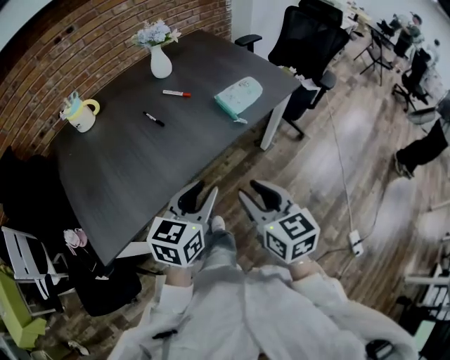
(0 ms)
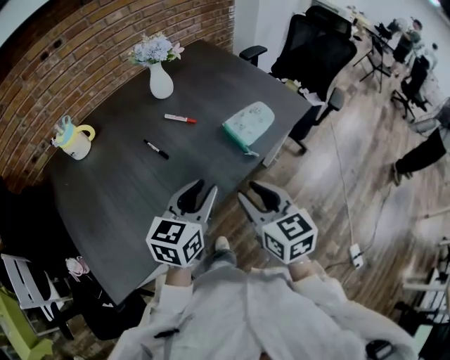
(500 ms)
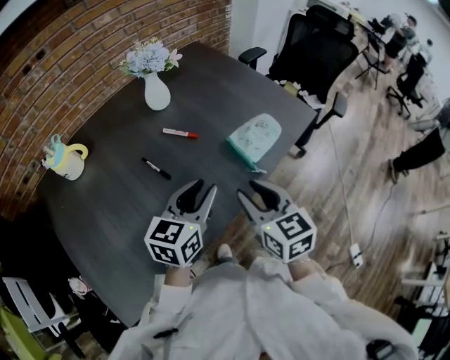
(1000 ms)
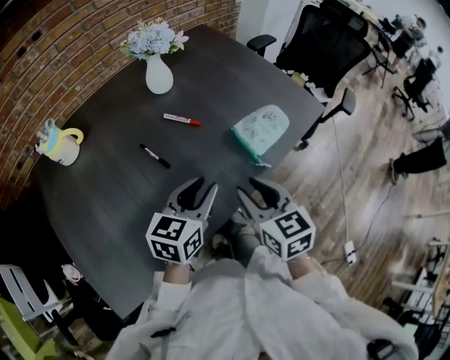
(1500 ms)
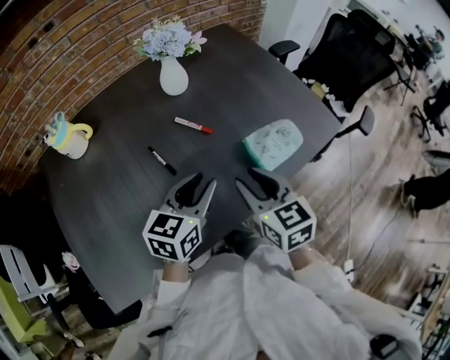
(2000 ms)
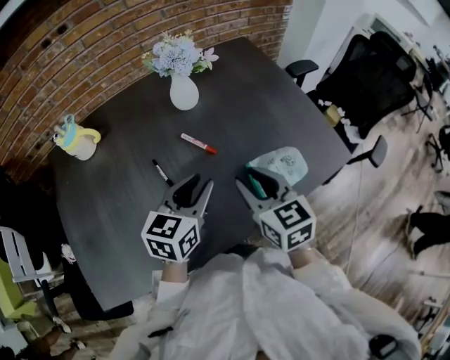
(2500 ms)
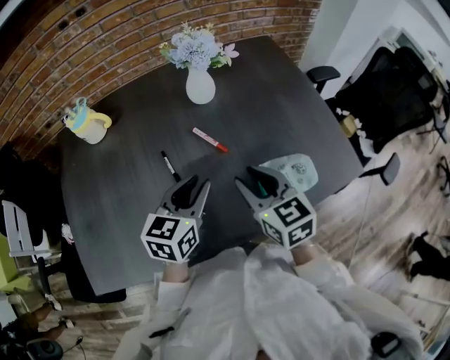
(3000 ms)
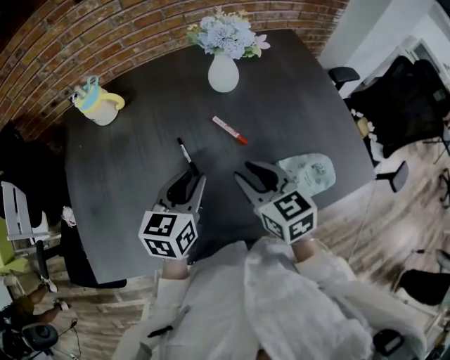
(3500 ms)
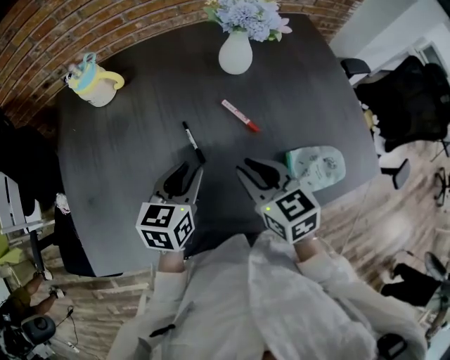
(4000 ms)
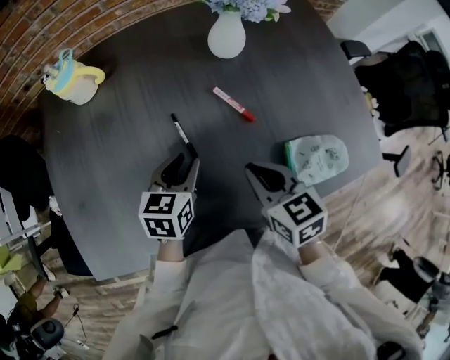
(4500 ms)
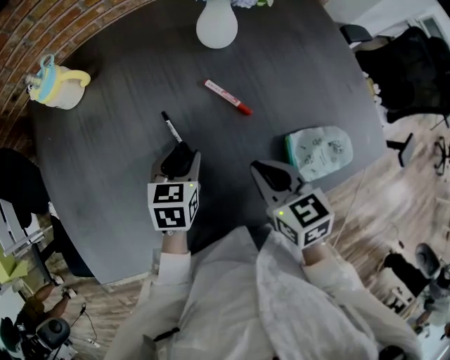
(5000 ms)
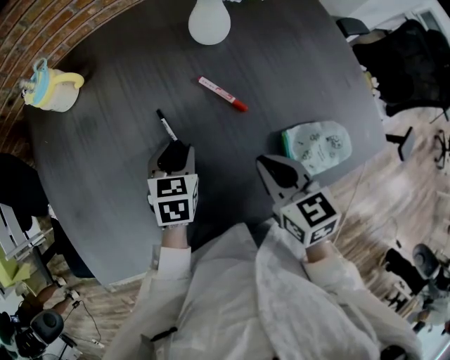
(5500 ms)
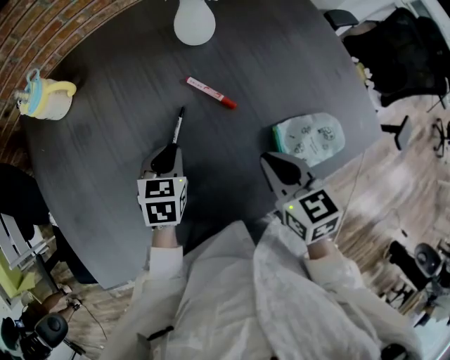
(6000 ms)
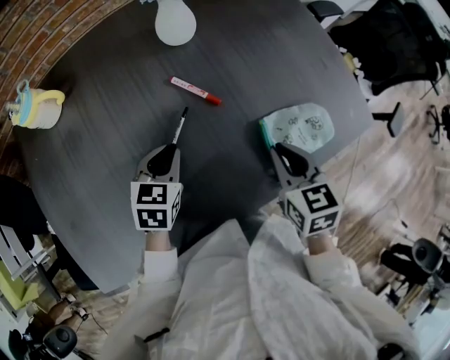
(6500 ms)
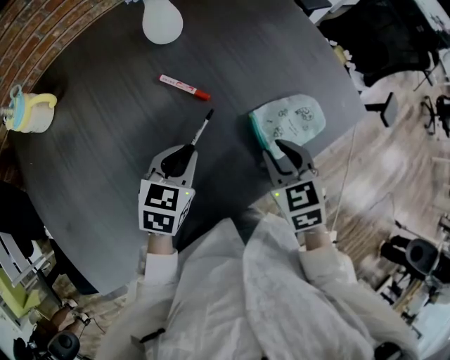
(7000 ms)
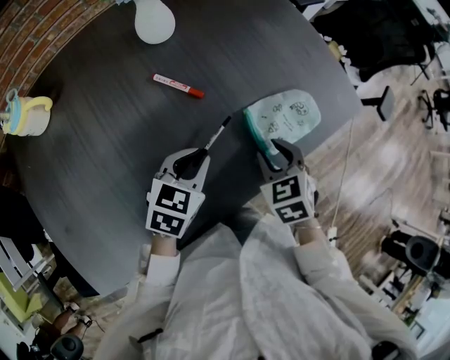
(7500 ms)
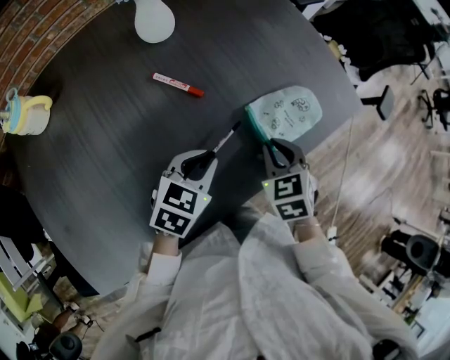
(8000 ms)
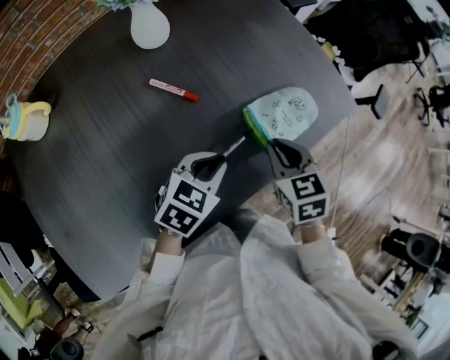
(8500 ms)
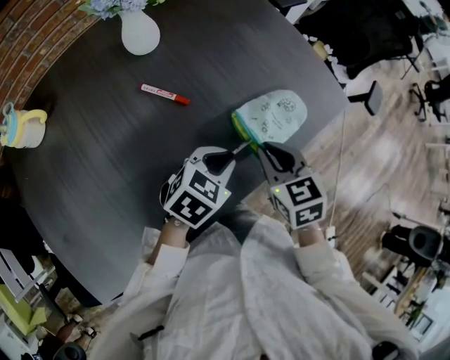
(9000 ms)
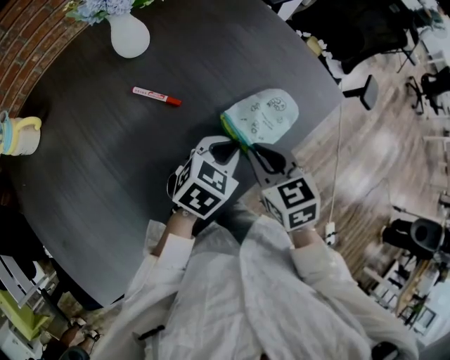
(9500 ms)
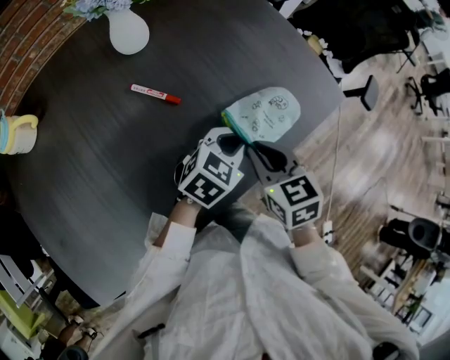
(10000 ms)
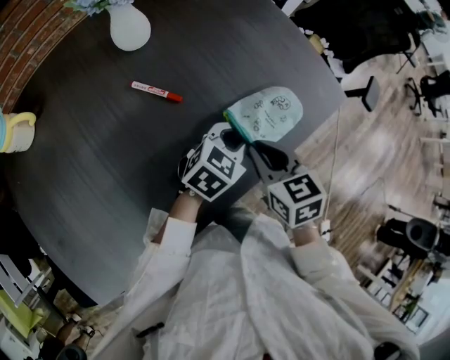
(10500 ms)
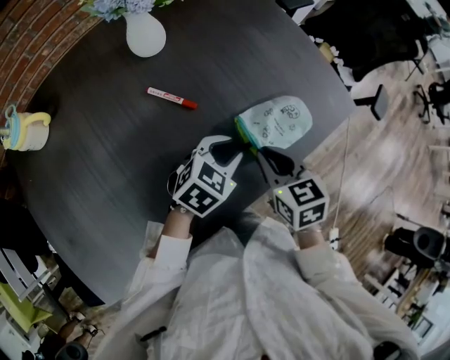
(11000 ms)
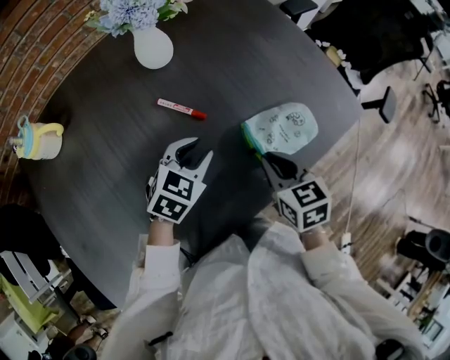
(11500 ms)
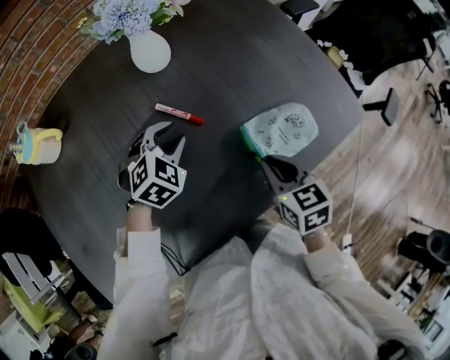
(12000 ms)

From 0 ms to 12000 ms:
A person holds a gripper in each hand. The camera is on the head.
From 0 ms to 2000 ms: Both grippers travel together forward, some 30 cm.
From 2000 ms to 4000 ms: The left gripper ends up approximately 15 cm from where it was, and swivels approximately 30 degrees. The right gripper ends up roughly 15 cm from where it was, and turns by approximately 30 degrees.
From 4000 ms to 6000 ms: The left gripper shifts some 10 cm downward, and turns by about 20 degrees. The right gripper travels to the right by about 10 cm.
From 6000 ms to 8000 ms: The right gripper ends up approximately 10 cm from where it was, and changes its angle by about 30 degrees; the left gripper moves about 15 cm, and changes its angle by roughly 40 degrees.
From 8000 ms to 10000 ms: The left gripper heads to the right and forward, covering some 15 cm.
From 10000 ms to 12000 ms: The left gripper goes some 20 cm to the left, and changes its angle by roughly 40 degrees.

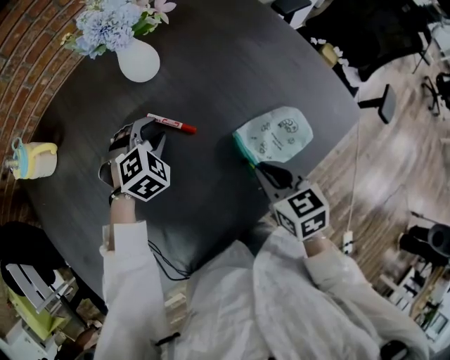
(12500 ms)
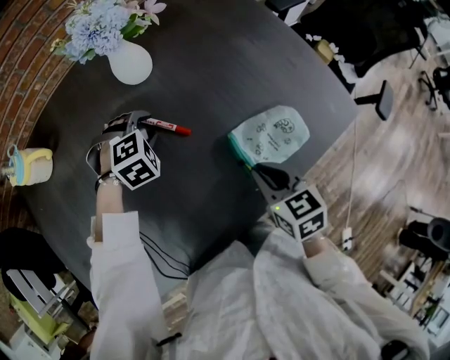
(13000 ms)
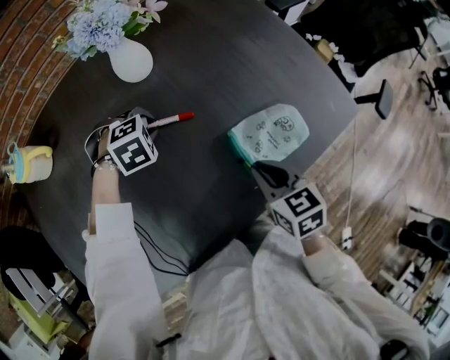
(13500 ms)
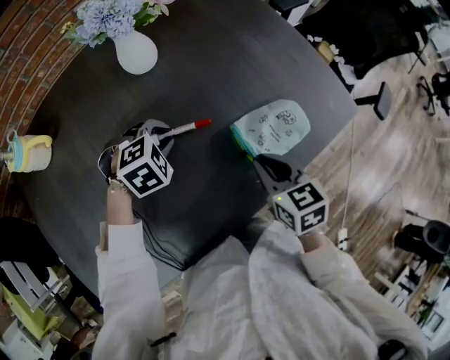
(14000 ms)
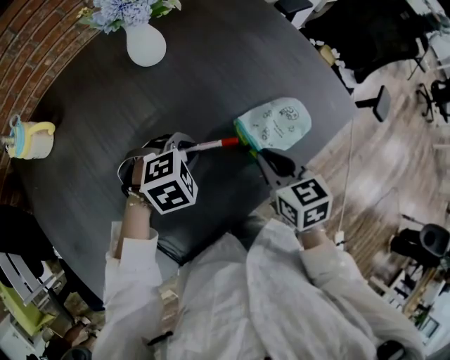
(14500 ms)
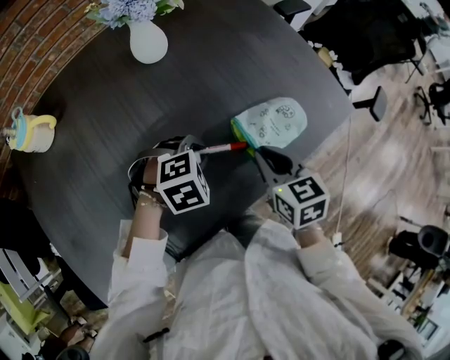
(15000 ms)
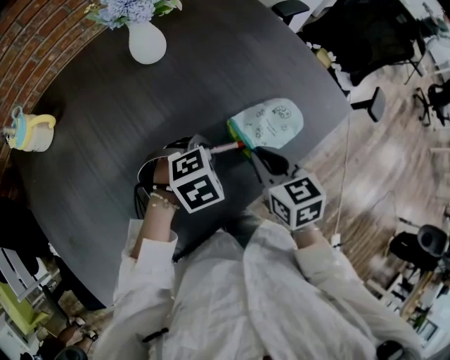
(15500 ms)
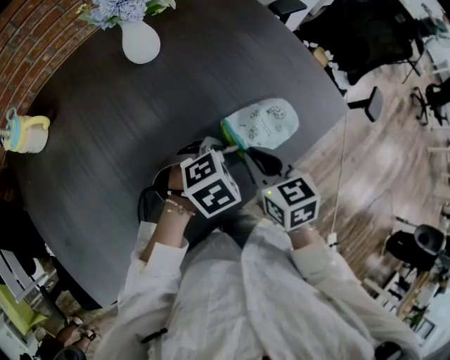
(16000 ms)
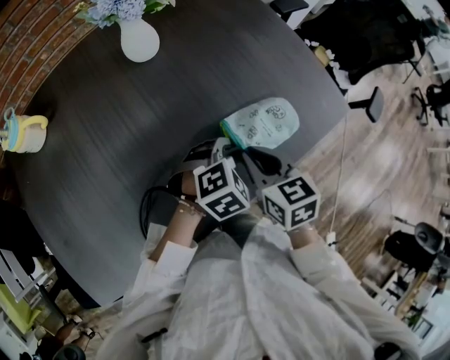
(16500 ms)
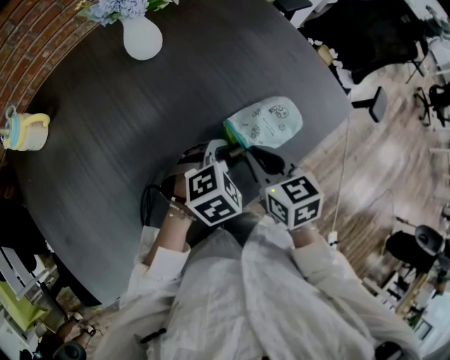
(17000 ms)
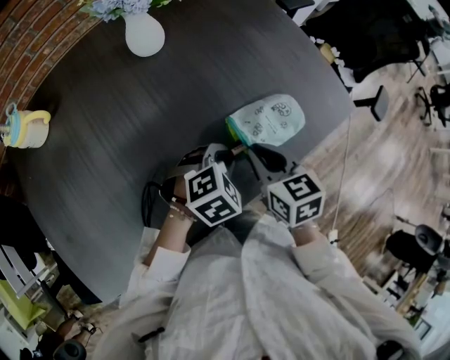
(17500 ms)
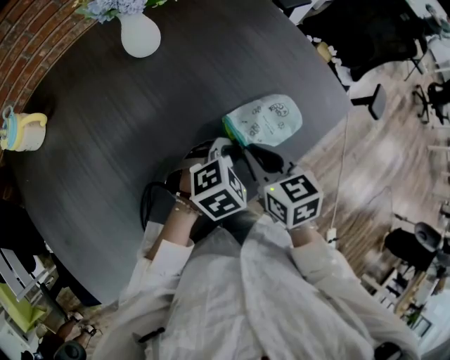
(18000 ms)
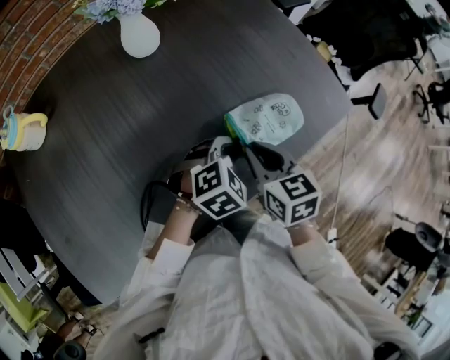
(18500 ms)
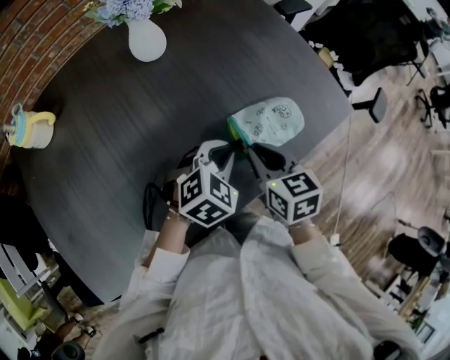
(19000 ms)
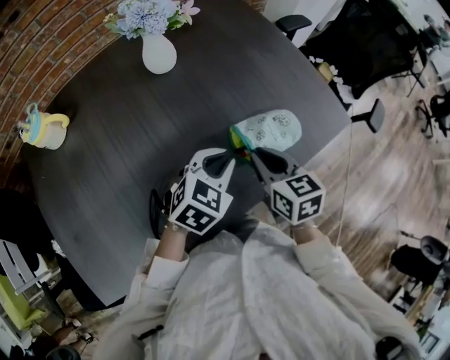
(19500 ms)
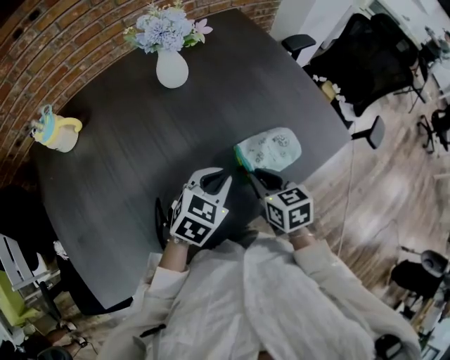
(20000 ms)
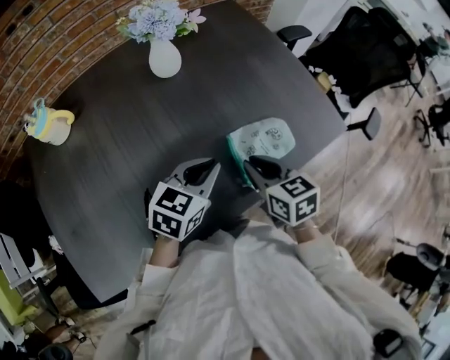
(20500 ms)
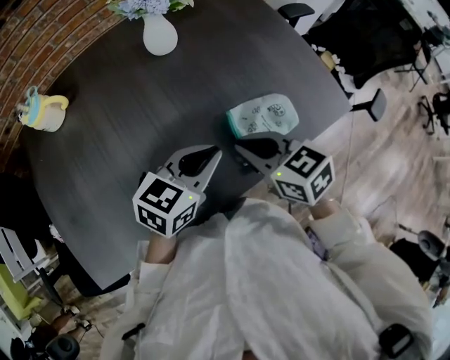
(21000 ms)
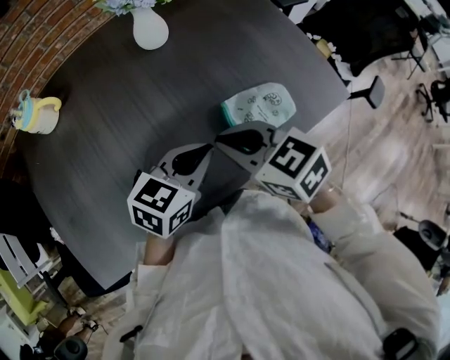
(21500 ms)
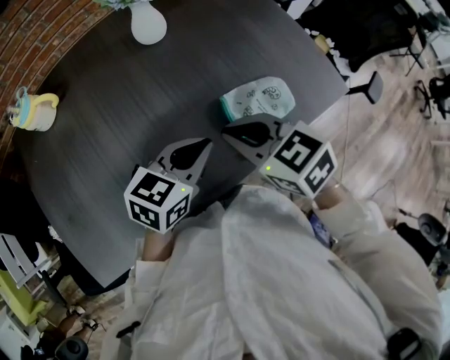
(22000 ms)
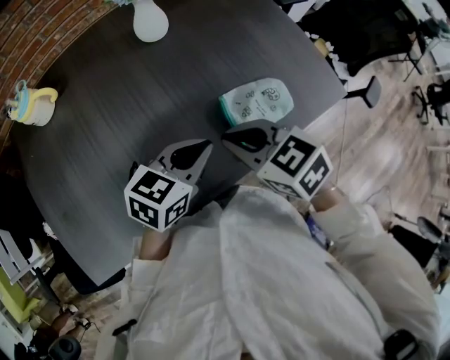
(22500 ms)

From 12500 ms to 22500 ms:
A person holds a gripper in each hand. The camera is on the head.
From 12500 ms to 14500 ms: The left gripper shifts by roughly 15 cm, and swivels about 20 degrees.
From 14500 ms to 16500 ms: The left gripper heads to the right, covering approximately 15 cm.
From 16500 ms to 18500 ms: The grippers stay close to where they were, moving slightly.
From 18500 ms to 20500 ms: The left gripper travels upward and to the left by roughly 15 cm, and turns by roughly 40 degrees.
From 20500 ms to 22500 ms: The right gripper goes some 5 cm to the left, and rotates about 30 degrees.

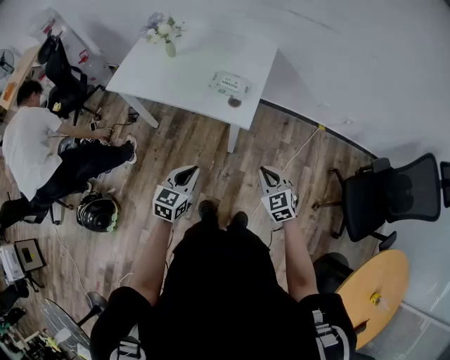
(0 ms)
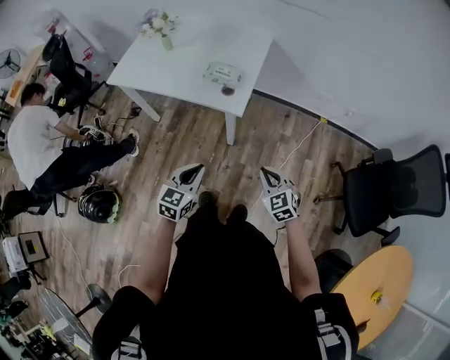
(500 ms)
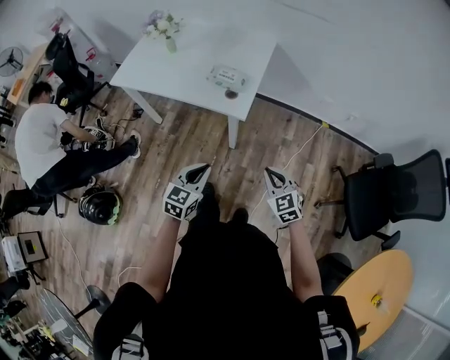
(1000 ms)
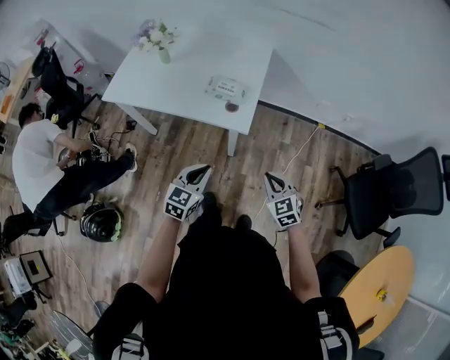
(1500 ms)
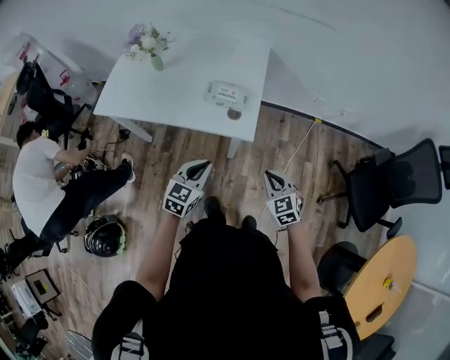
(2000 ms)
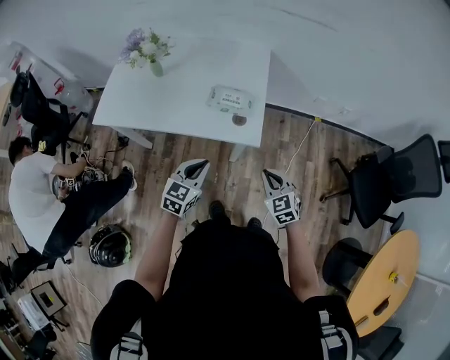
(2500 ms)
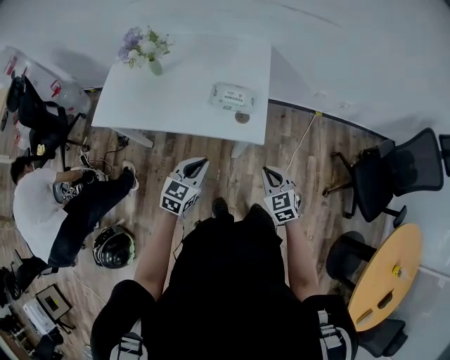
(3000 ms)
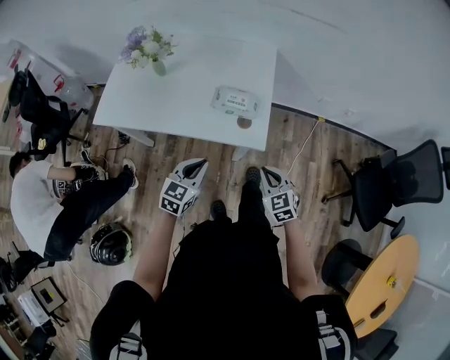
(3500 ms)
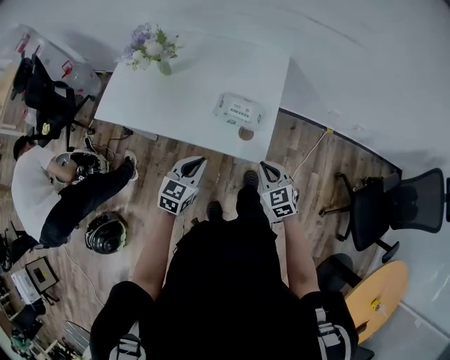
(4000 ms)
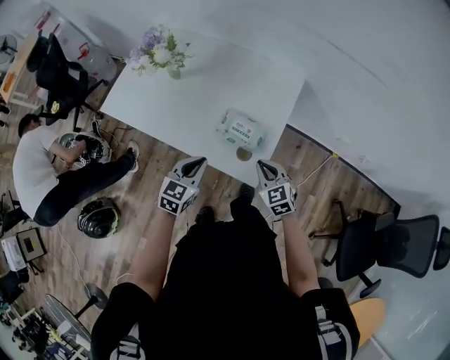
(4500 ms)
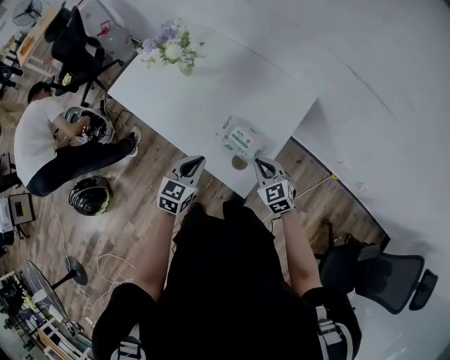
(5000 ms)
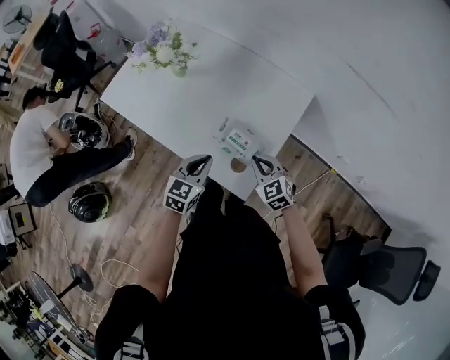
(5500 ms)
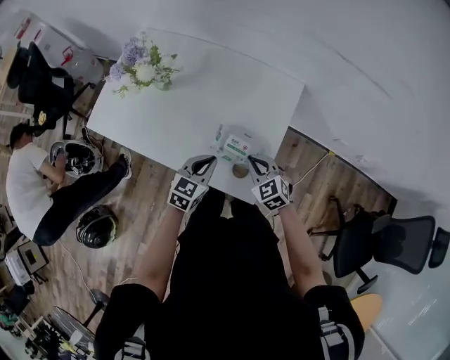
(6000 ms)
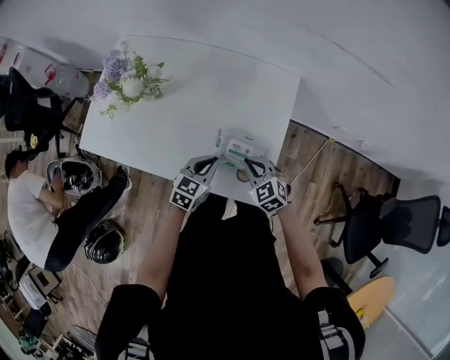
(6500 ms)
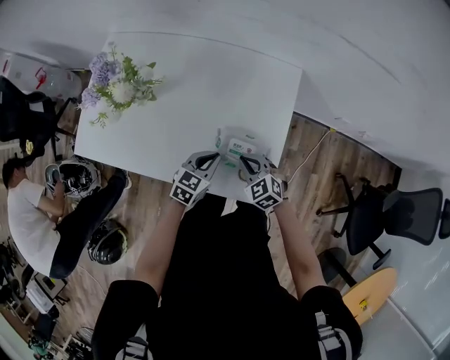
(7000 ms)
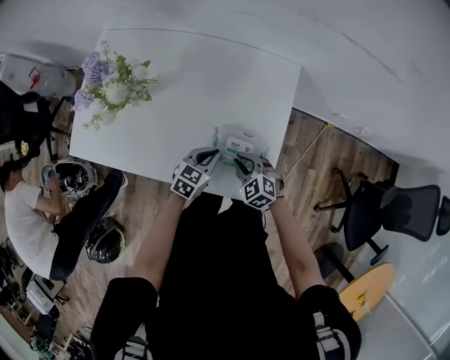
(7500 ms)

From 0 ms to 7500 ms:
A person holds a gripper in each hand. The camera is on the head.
From 0 ms to 2000 ms: The left gripper goes some 15 cm forward, while the right gripper travels forward by some 5 cm.
From 2000 ms to 4000 ms: The grippers both shift forward and to the left by approximately 15 cm.
From 4000 ms to 5500 ms: The right gripper heads forward, covering approximately 20 cm, and swivels roughly 30 degrees, while the left gripper travels forward and to the right by approximately 15 cm.
From 5500 ms to 7500 ms: The left gripper is displaced downward and forward by approximately 20 cm, and swivels some 30 degrees. Meanwhile the right gripper shifts about 15 cm downward and to the left.
